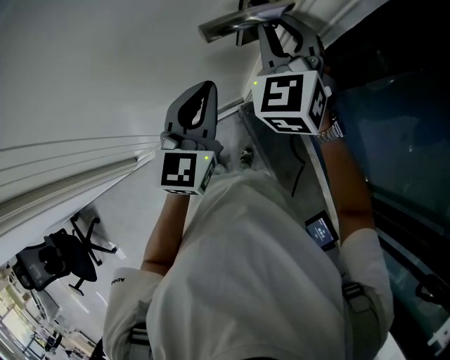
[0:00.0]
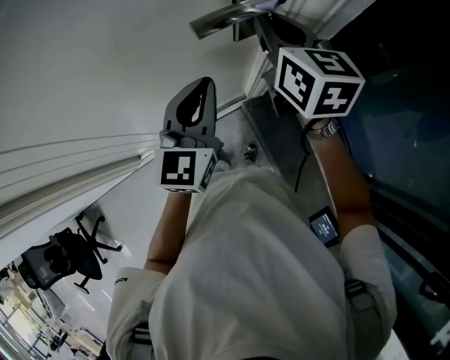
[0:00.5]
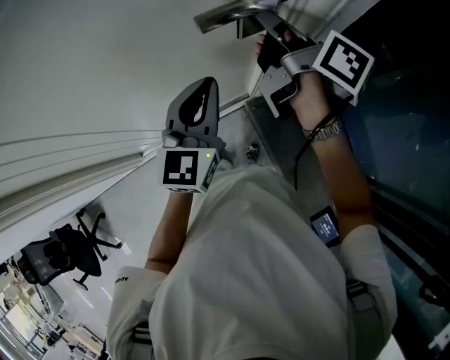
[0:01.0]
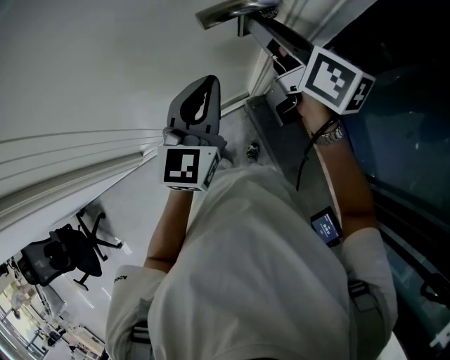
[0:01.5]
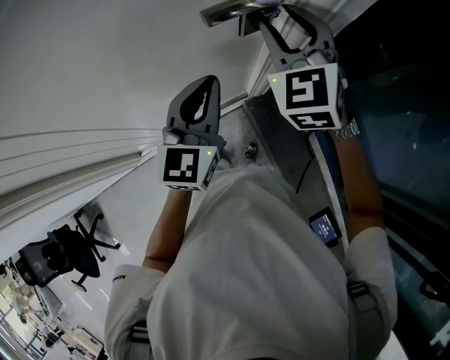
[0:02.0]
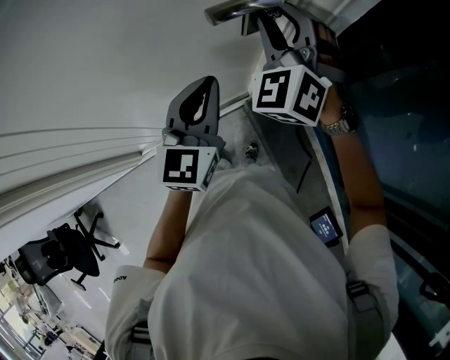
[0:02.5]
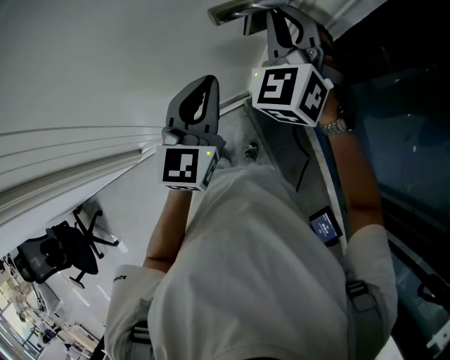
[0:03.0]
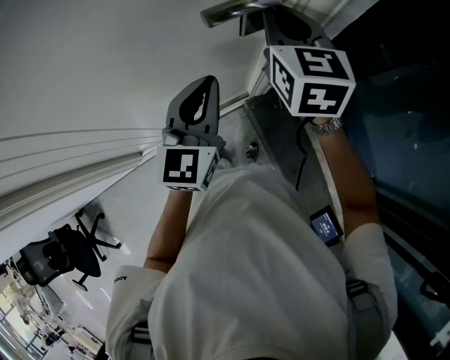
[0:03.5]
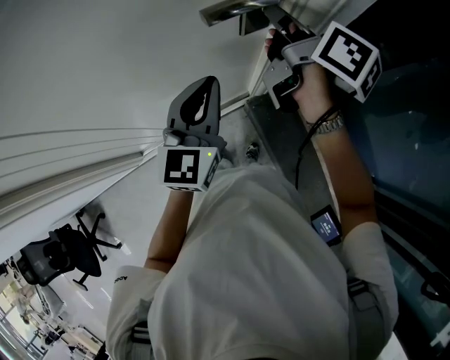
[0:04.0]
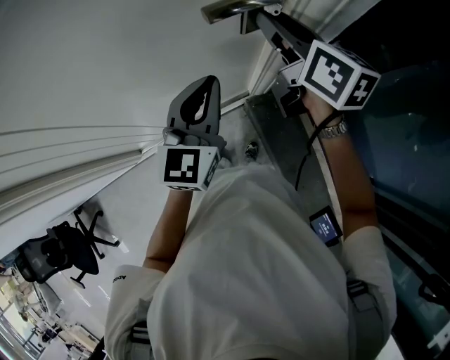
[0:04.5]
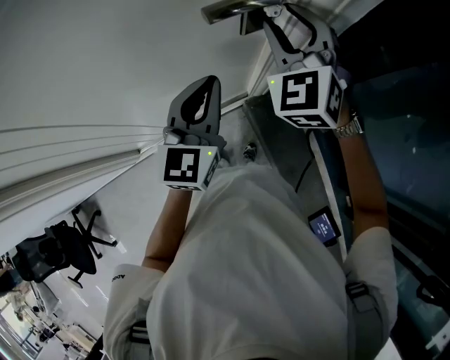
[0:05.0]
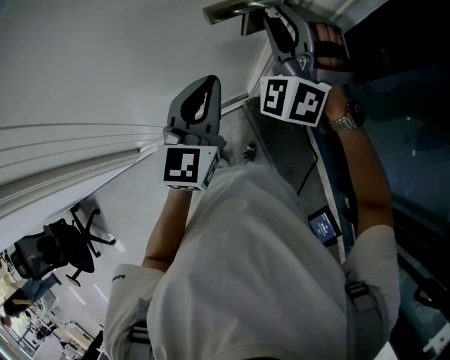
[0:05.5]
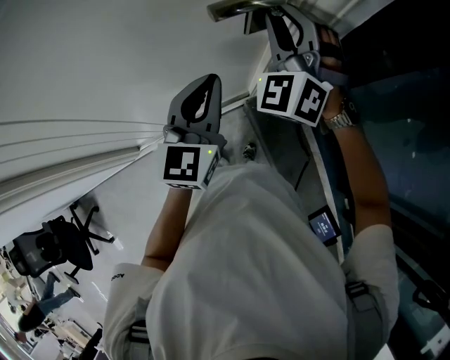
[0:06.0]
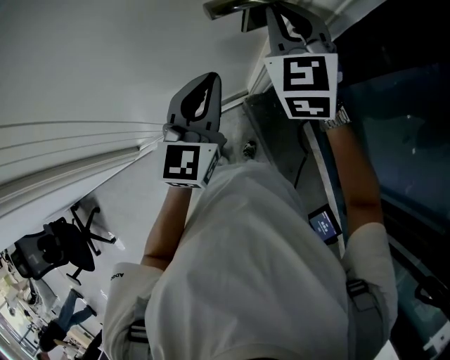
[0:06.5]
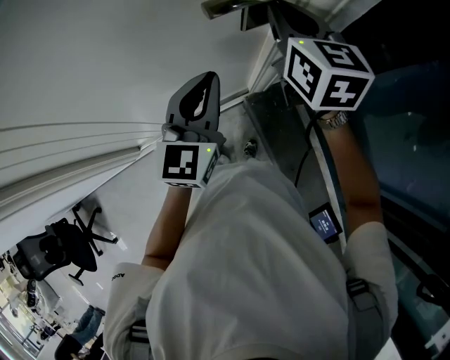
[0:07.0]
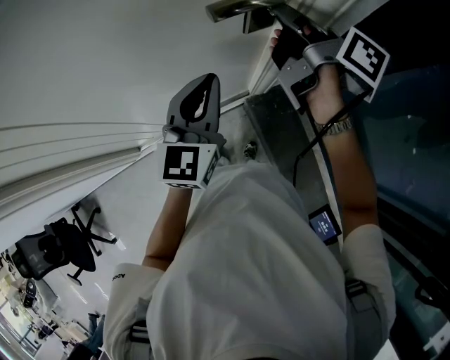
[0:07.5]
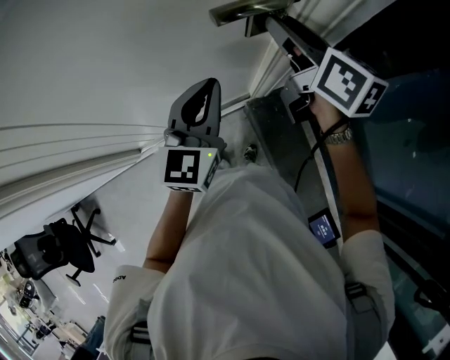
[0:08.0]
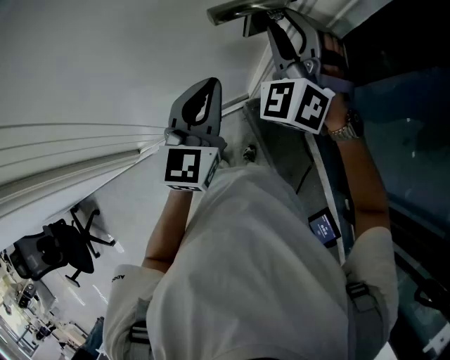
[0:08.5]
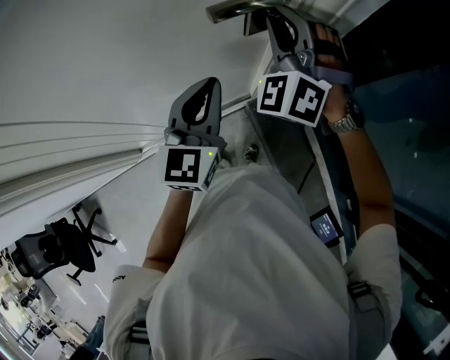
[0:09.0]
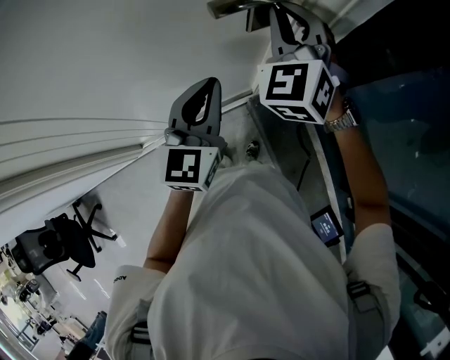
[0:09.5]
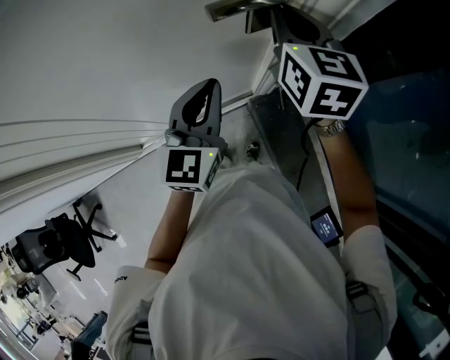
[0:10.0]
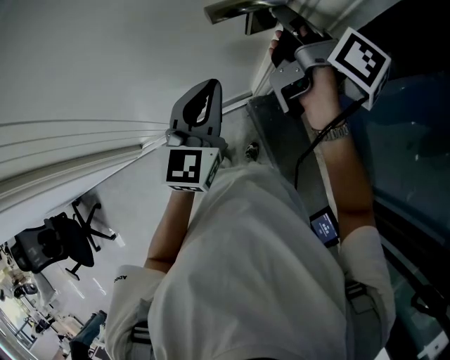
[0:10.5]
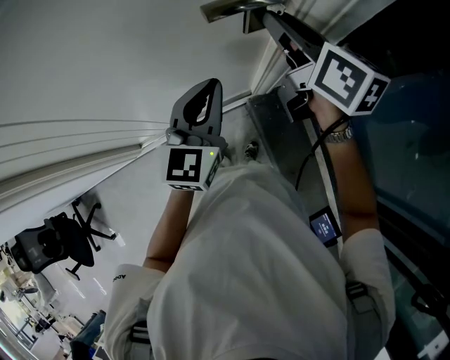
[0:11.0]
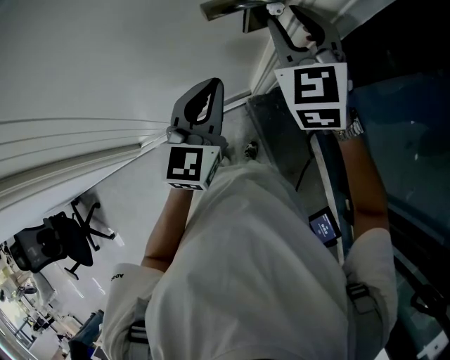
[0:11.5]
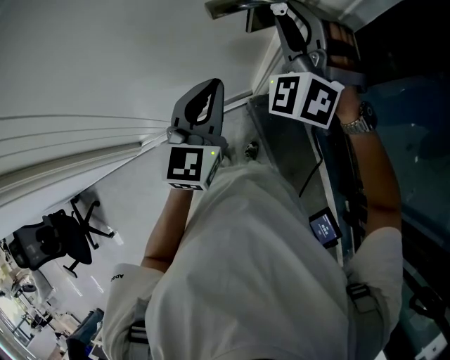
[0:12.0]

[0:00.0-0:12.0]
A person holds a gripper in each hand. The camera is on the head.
0:02.0 to 0:04.0: The right gripper rolls clockwise, seen from behind, by approximately 90 degrees, and closes its fingers.
0:04.0 to 0:06.0: The right gripper twists approximately 110 degrees counterclockwise, seen from behind.
0:06.0 to 0:08.0: The right gripper rotates around the line of its fingers by about 90 degrees, clockwise from behind.
0:08.0 to 0:10.0: The right gripper swivels about 30 degrees, and closes up.
0:10.0 to 0:12.0: The right gripper rolls counterclockwise, seen from behind, by some 70 degrees, and opens its fingers.

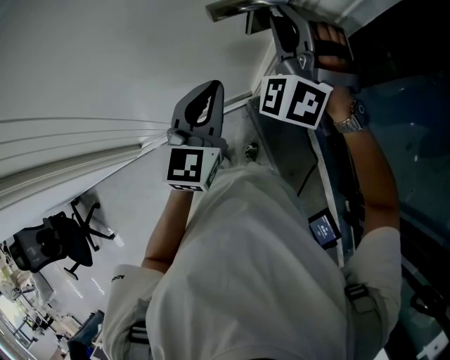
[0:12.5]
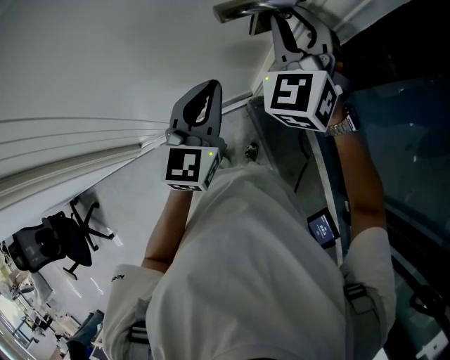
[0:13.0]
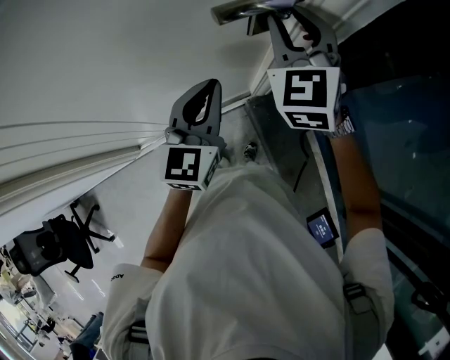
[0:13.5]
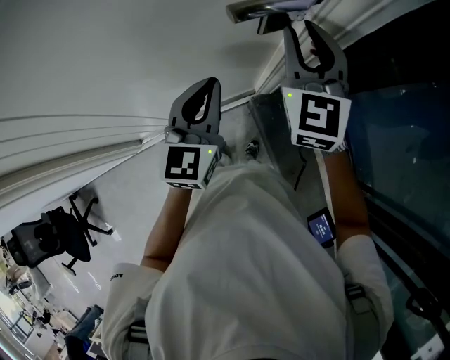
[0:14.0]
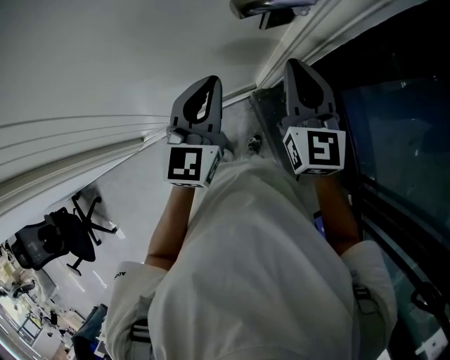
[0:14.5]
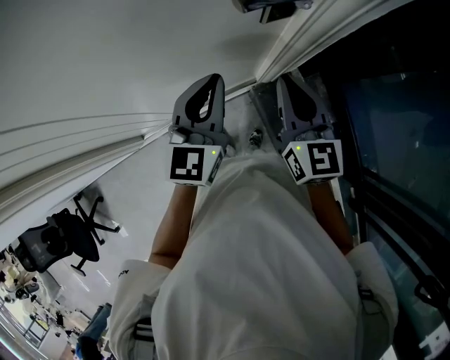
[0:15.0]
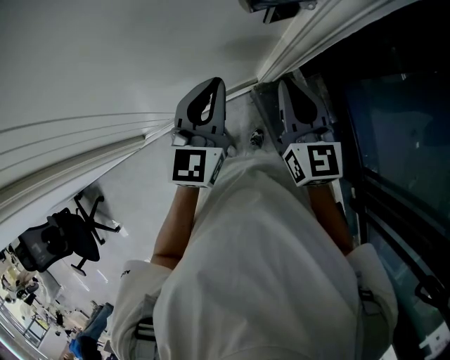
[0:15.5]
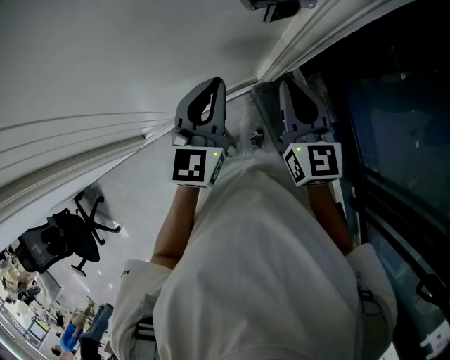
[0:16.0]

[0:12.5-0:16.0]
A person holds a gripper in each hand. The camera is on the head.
0:12.5 to 0:14.5: The right gripper is displaced backward and downward by approximately 10 cm, rolls clockwise, seen from behind, by about 70 degrees, and closes up.
0:14.5 to 0:16.0: The right gripper changes place by approximately 5 cm.

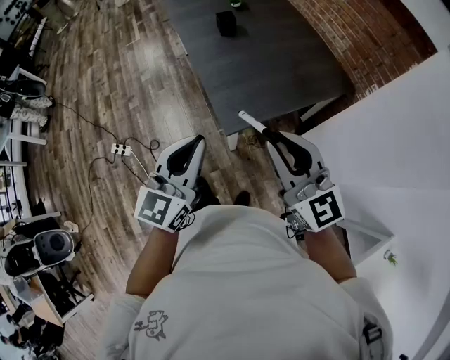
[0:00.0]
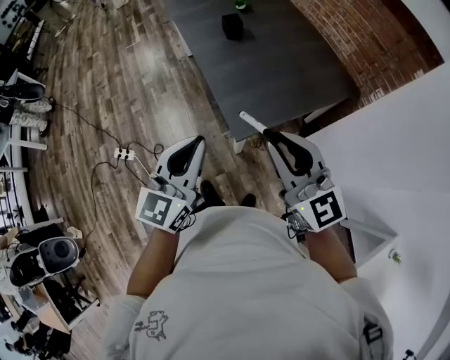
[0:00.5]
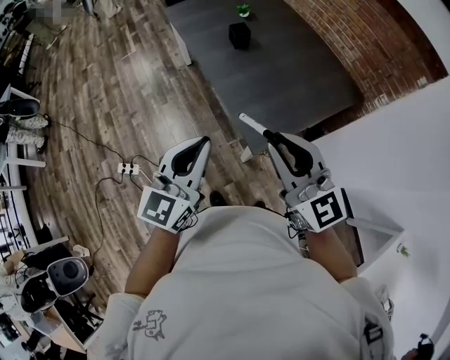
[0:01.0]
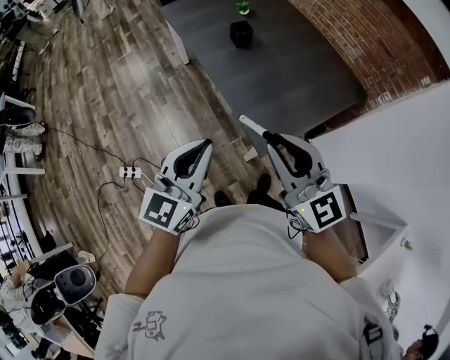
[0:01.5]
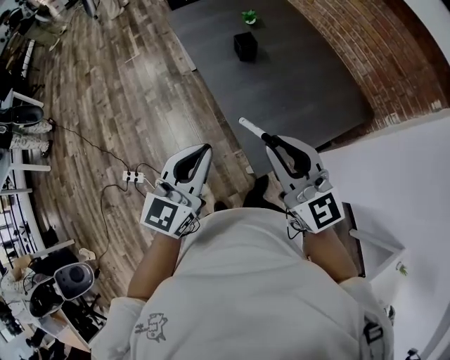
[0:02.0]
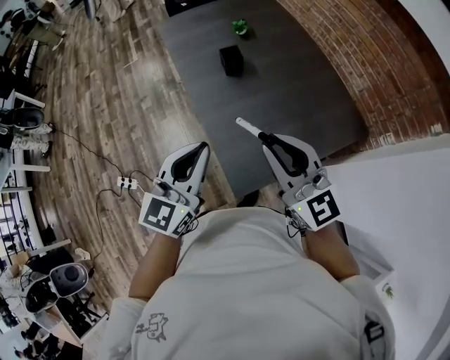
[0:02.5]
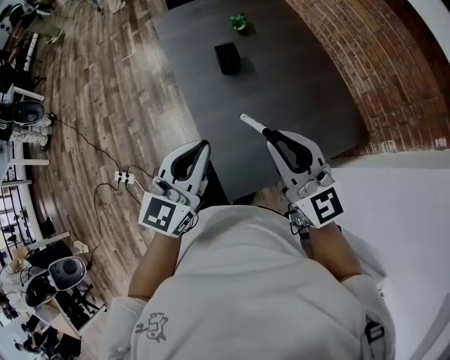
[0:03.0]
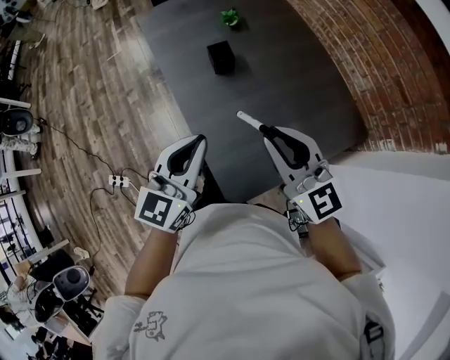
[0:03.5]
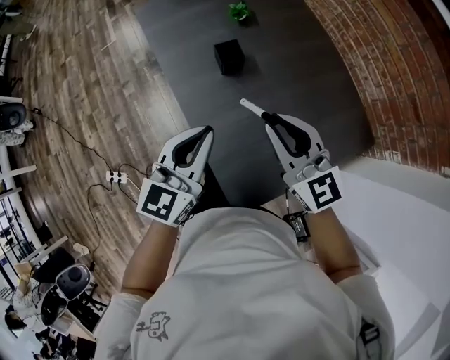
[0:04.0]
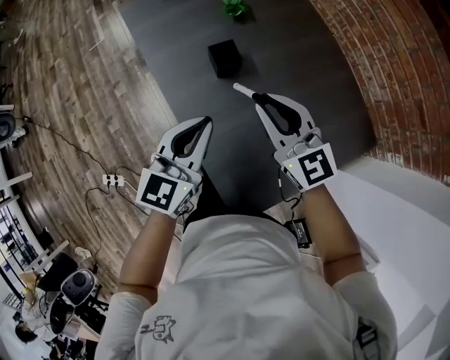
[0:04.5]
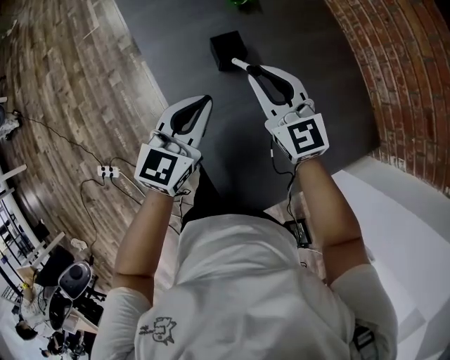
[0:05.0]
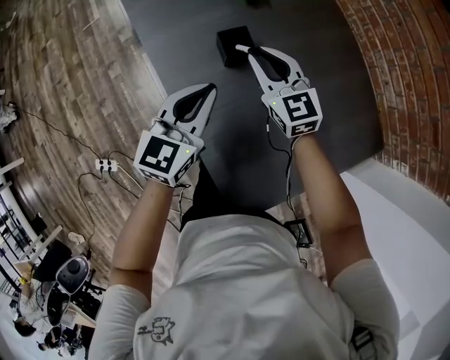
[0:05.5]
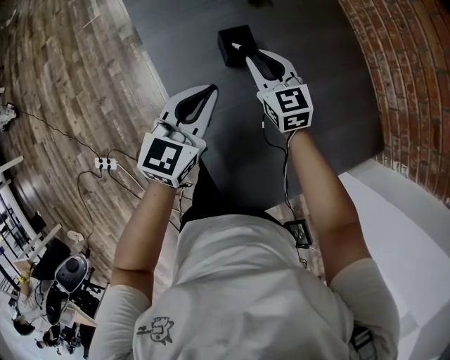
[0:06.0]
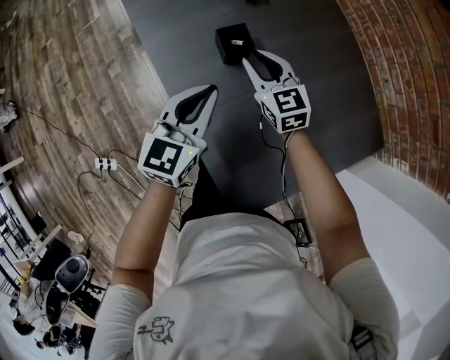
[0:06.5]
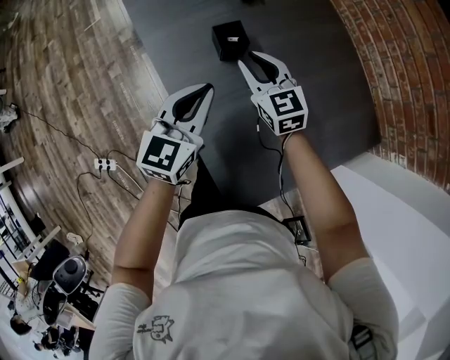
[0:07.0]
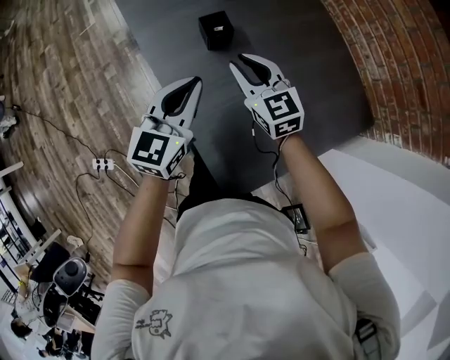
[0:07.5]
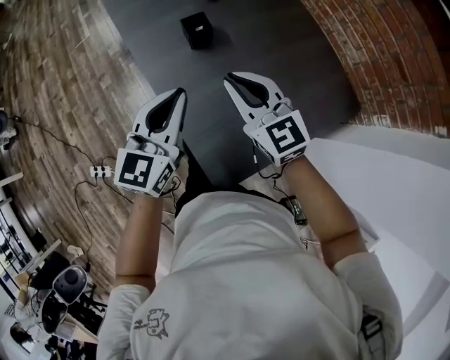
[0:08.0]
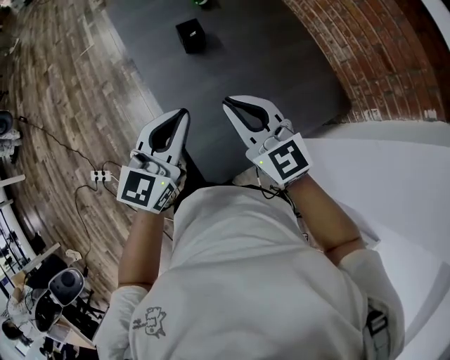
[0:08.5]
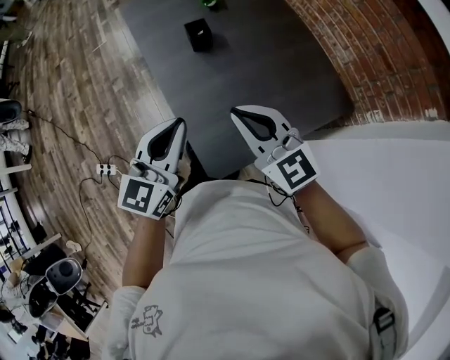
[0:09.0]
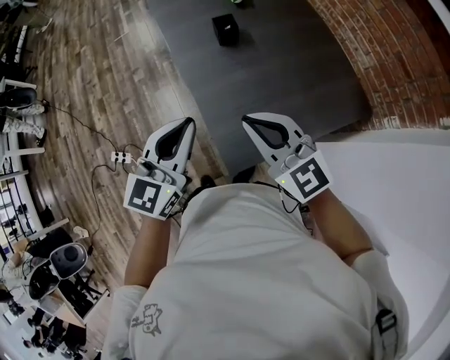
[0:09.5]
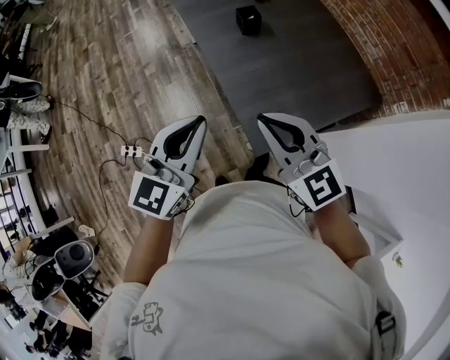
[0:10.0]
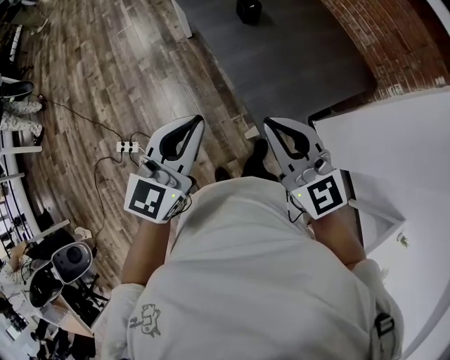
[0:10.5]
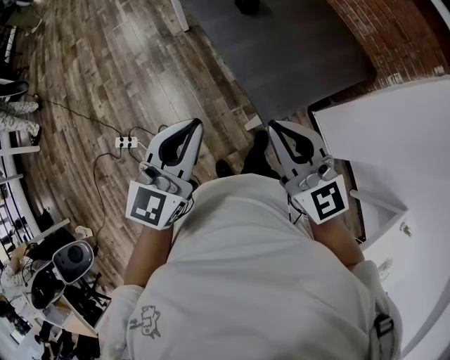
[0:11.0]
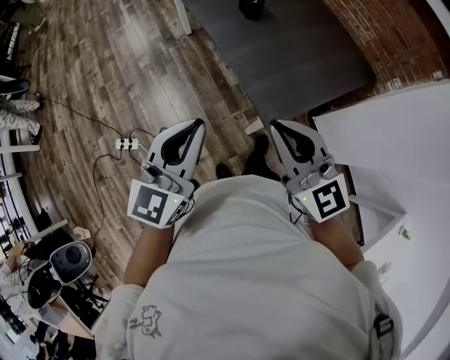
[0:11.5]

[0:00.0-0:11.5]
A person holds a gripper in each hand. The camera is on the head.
0:00.0 to 0:02.0: Both grippers travel together forward and to the left, roughly 20 cm.
0:02.0 to 0:04.0: The grippers both shift forward by roughly 30 cm.
0:04.0 to 0:06.0: The left gripper is displaced forward and downward by some 20 cm, while the right gripper travels downward and forward by approximately 30 cm.
0:06.0 to 0:07.5: The right gripper travels backward and upward by some 15 cm; the left gripper shifts some 5 cm backward.
0:07.5 to 0:09.5: Both grippers move backward and upward, approximately 30 cm. The right gripper rotates about 20 degrees, and closes.
0:09.5 to 0:11.5: The grippers both shift backward and to the left by some 25 cm.
